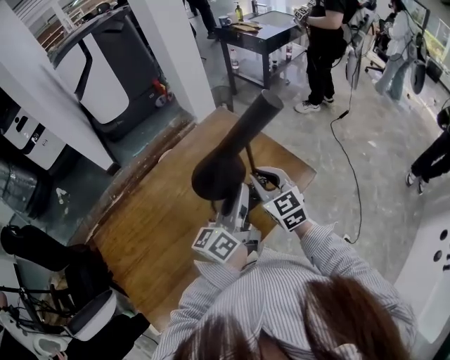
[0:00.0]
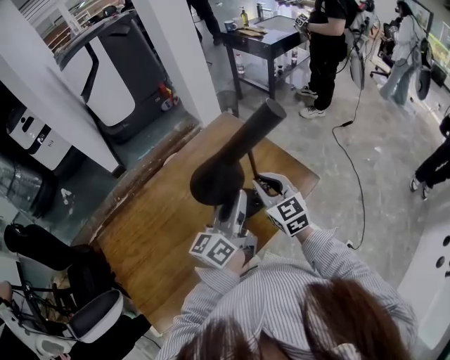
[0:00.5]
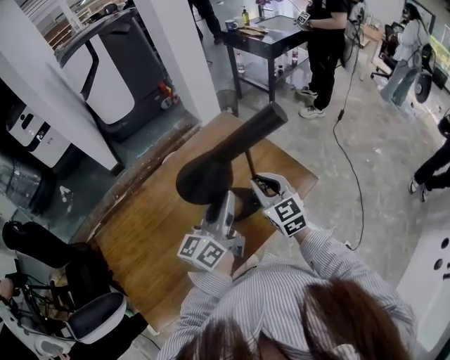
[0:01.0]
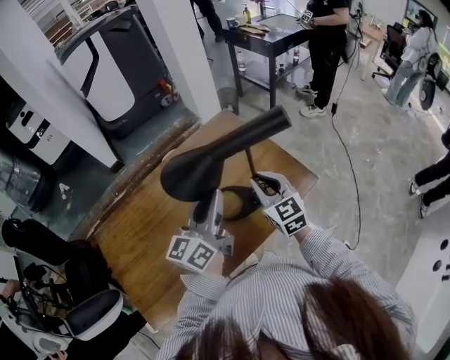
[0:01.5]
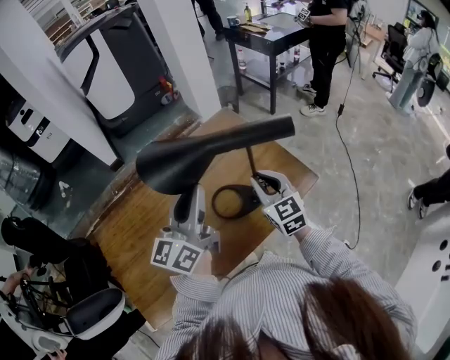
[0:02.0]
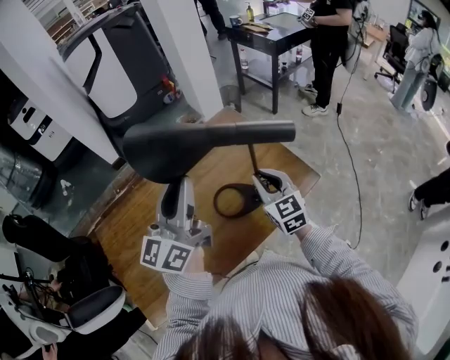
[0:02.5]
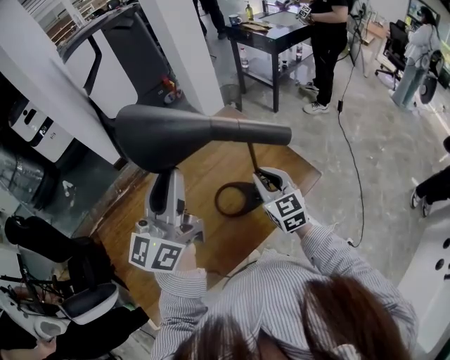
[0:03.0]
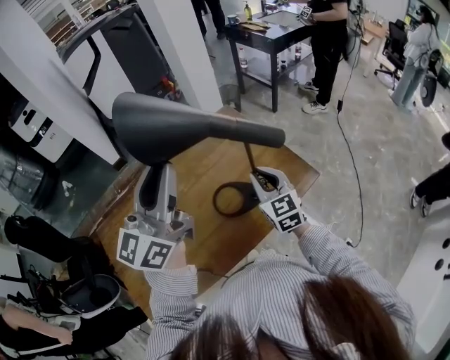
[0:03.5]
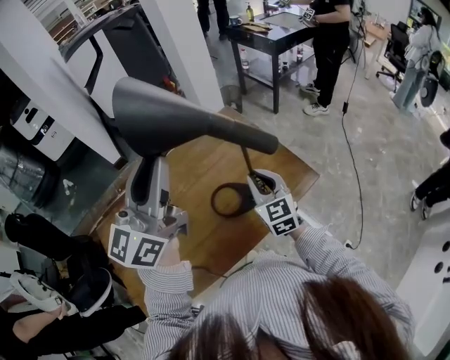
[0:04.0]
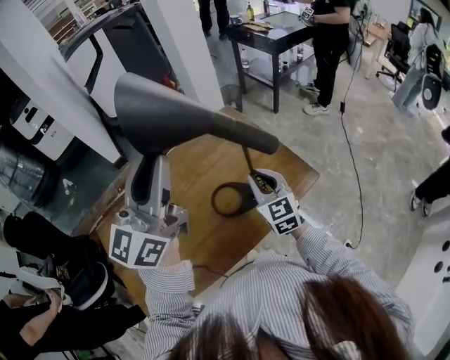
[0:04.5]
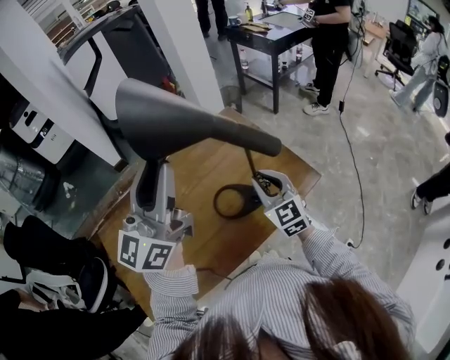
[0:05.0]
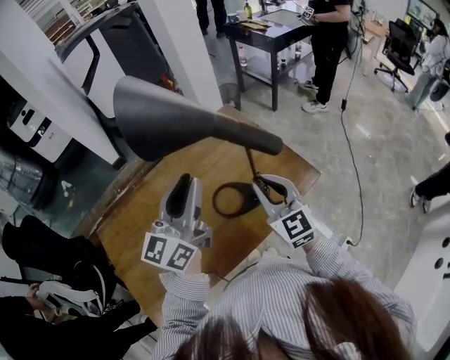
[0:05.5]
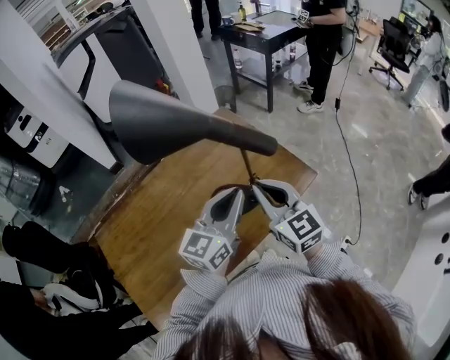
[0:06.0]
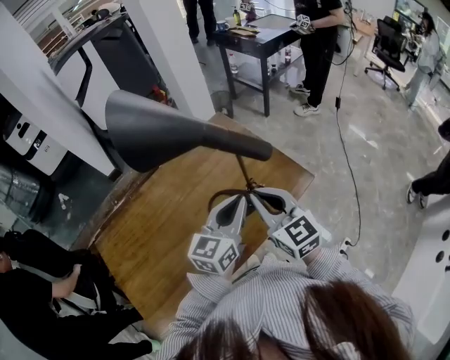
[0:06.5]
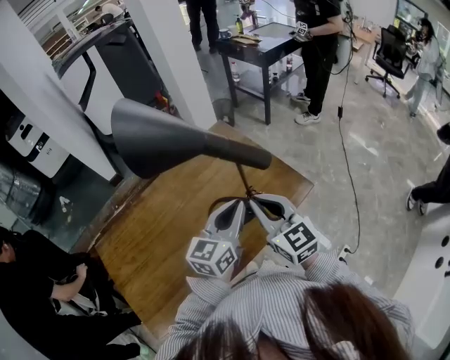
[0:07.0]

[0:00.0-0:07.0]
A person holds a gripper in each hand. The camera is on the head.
0:00.0 to 0:02.0: The left gripper travels to the left and upward by approximately 15 cm, and changes its angle by about 20 degrees.
0:02.0 to 0:03.5: The left gripper goes approximately 10 cm upward.
0:03.5 to 0:05.0: The grippers make only small movements.
0:05.0 to 0:07.0: The left gripper travels downward and to the right by roughly 25 cm, turns by some 30 degrees, and closes its fingers; the right gripper is displaced upward and backward by approximately 10 cm.

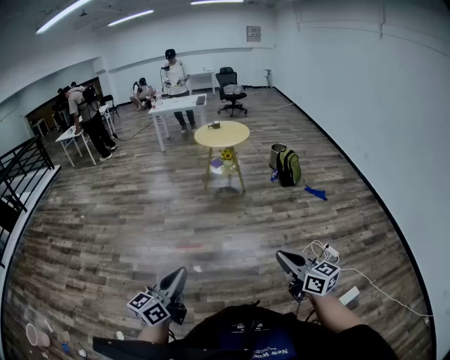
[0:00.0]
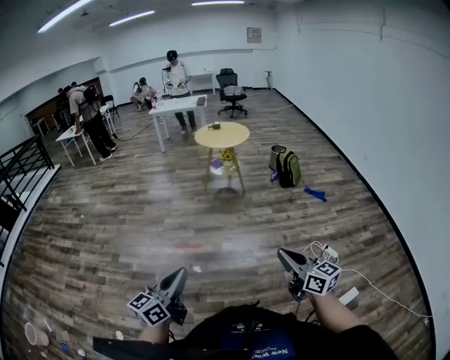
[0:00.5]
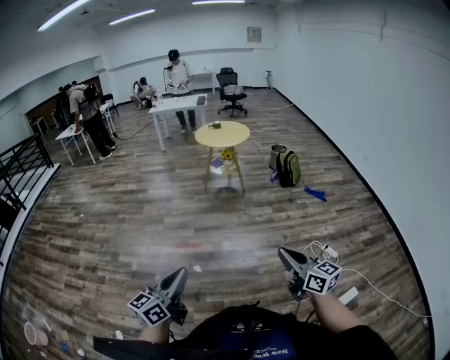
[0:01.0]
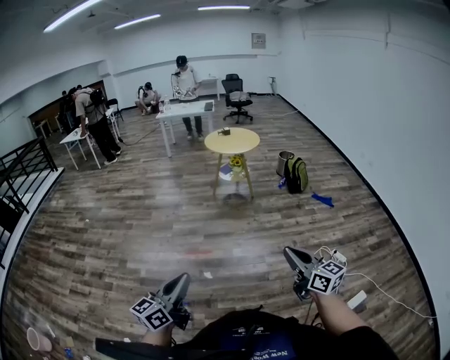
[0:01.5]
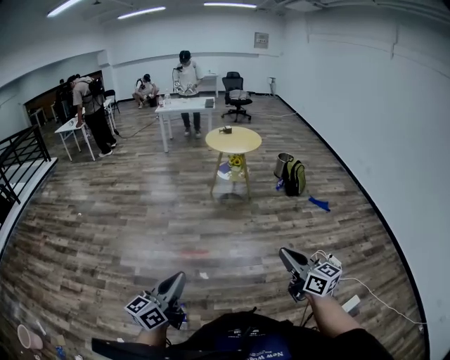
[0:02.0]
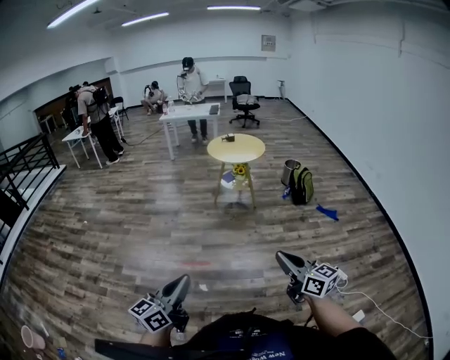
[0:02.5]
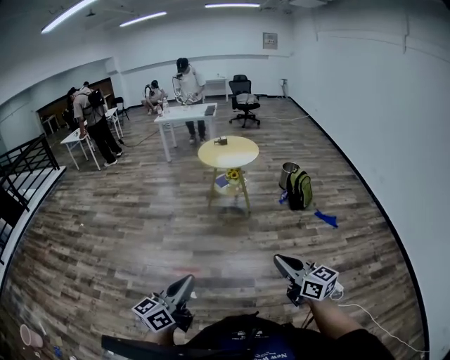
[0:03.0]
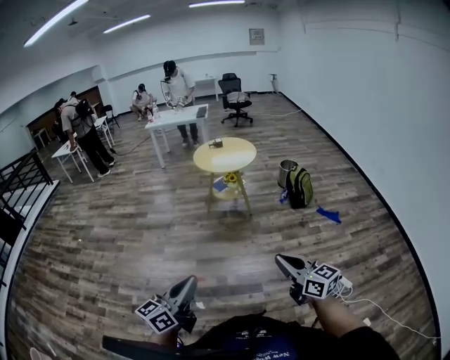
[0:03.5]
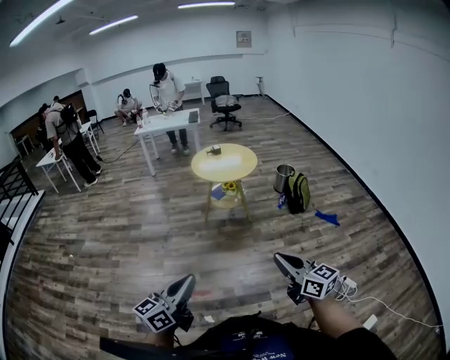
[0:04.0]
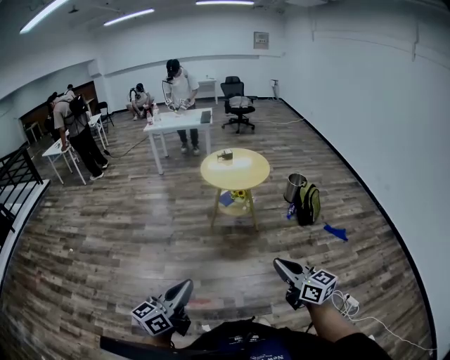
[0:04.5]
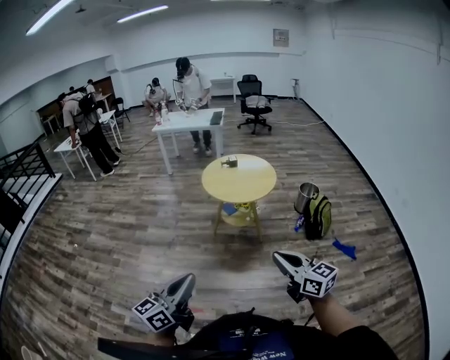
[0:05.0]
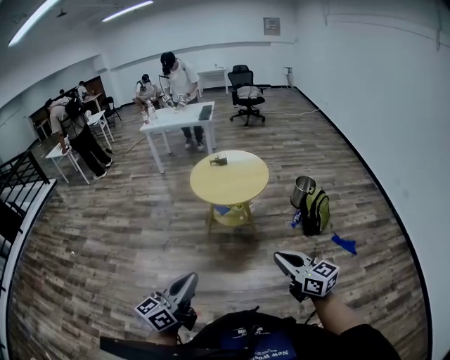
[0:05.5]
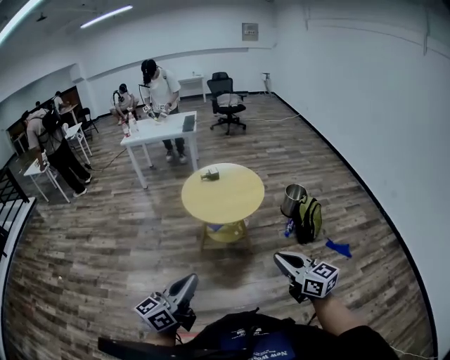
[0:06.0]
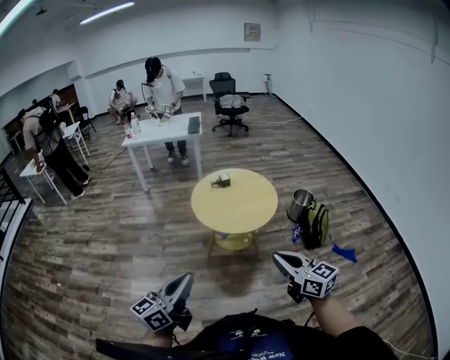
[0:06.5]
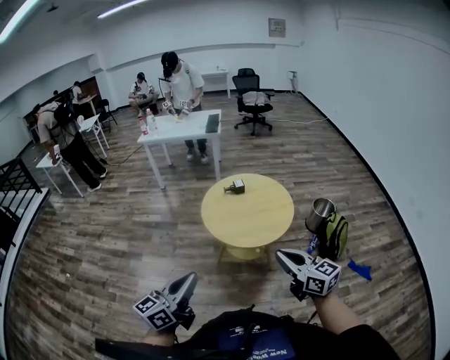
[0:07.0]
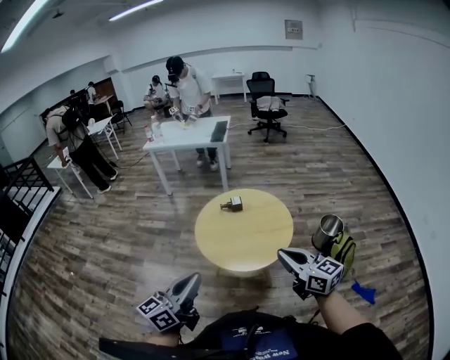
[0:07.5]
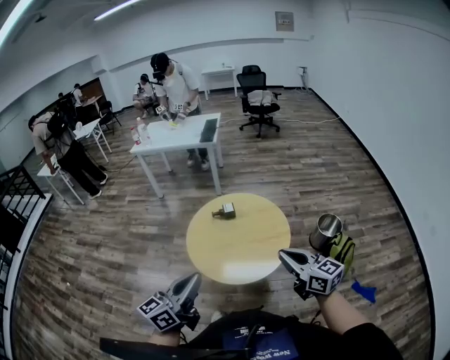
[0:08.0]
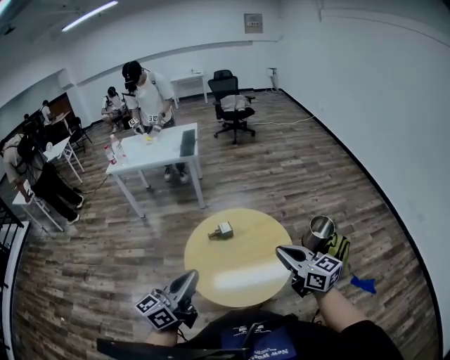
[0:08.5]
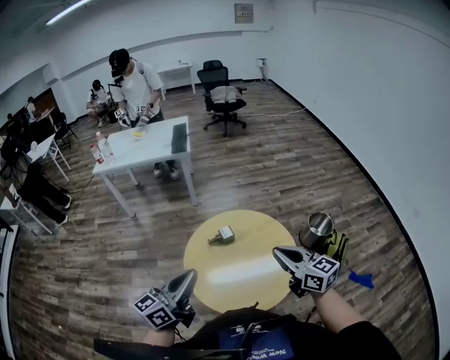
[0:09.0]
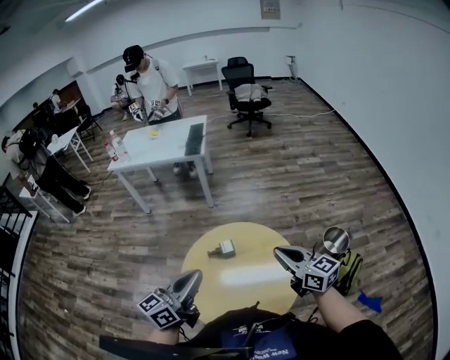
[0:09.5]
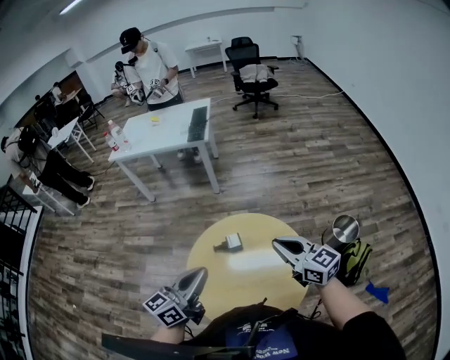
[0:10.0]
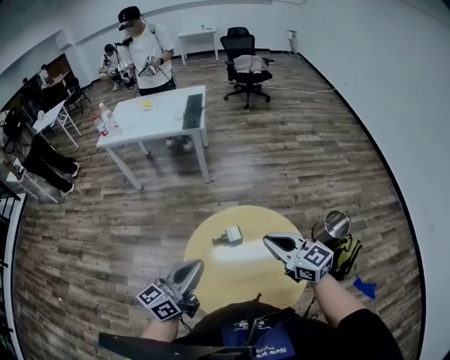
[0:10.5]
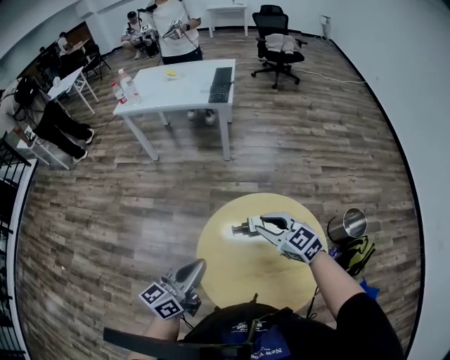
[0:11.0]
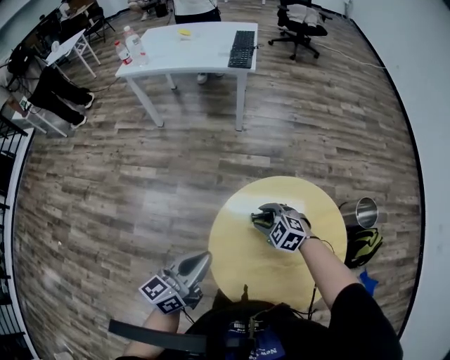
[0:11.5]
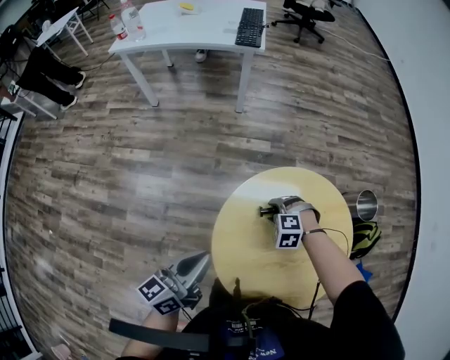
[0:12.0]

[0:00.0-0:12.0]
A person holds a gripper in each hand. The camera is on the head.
0:00.0 to 0:02.0: Both grippers move to the left, about 20 cm.
0:02.0 to 0:04.0: Both grippers are carried forward, approximately 50 cm.
0:04.0 to 0:06.0: Both grippers are carried forward, roughly 60 cm.
0:06.0 to 0:08.0: Both grippers are carried forward, some 60 cm.
0:08.0 to 0:10.0: The two grippers travel together, forward, about 40 cm.
0:10.0 to 0:12.0: The right gripper moves downward, to the left and forward, some 50 cm, tips its fingers downward by some 70 degrees, and opens up; the left gripper moves to the left, downward and forward, approximately 35 cm.

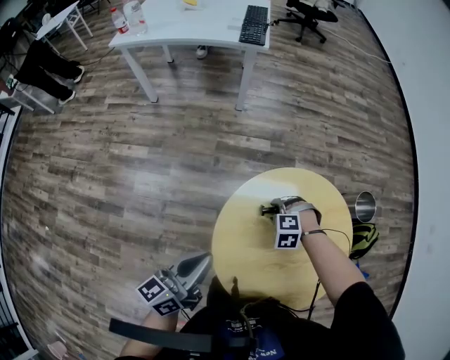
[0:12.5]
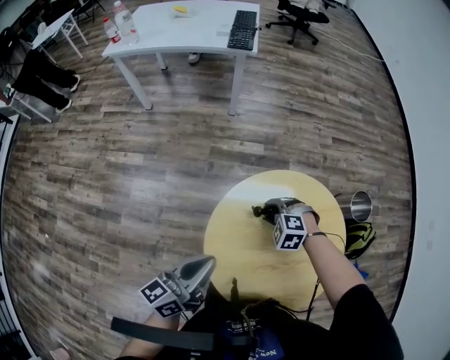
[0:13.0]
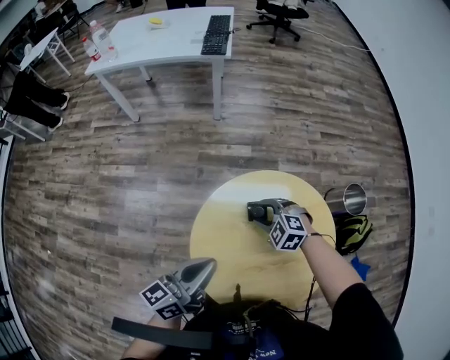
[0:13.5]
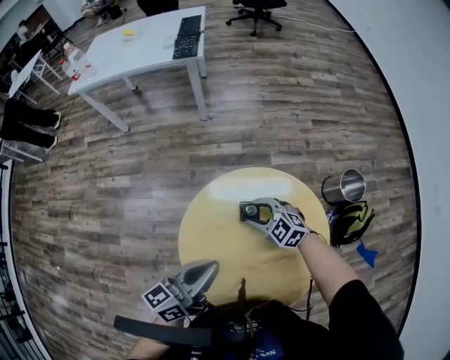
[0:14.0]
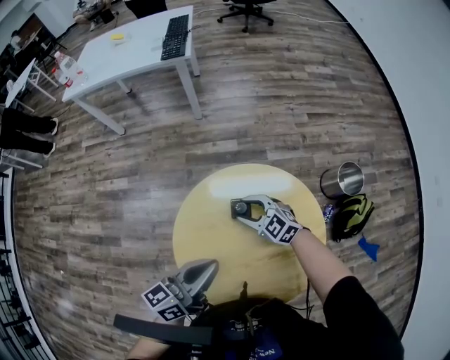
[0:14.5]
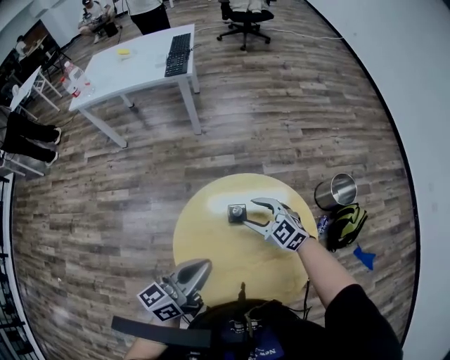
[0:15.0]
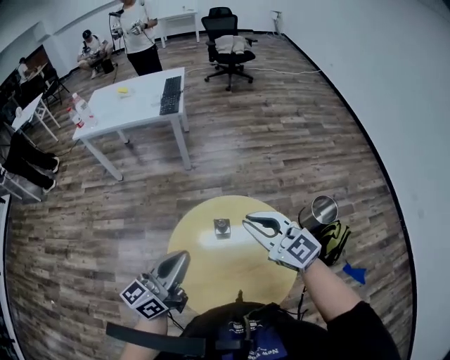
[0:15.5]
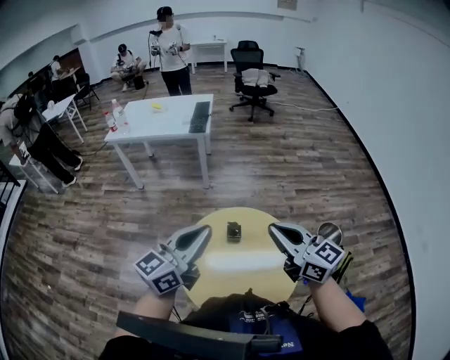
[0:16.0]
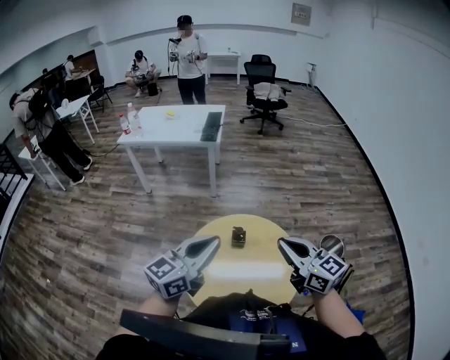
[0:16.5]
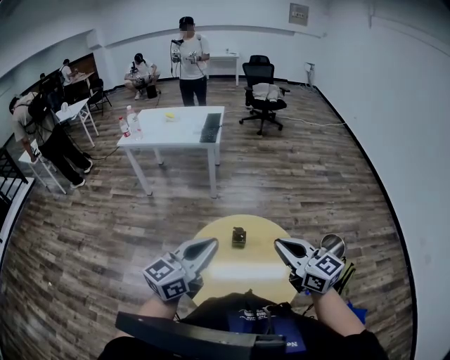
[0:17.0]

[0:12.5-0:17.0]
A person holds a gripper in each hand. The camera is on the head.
0:12.5 to 0:14.5: The left gripper moves some 25 cm. Meanwhile the right gripper moves roughly 15 cm, and angles its fingers upward, by about 50 degrees.
0:14.5 to 0:17.0: The left gripper travels upward and backward by roughly 35 cm, and turns by about 30 degrees. Meanwhile the right gripper travels upward and backward by approximately 50 cm, changes its angle by approximately 40 degrees, and closes.

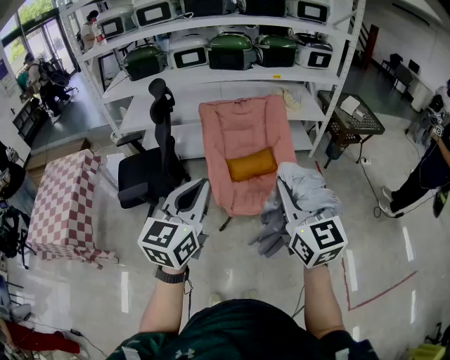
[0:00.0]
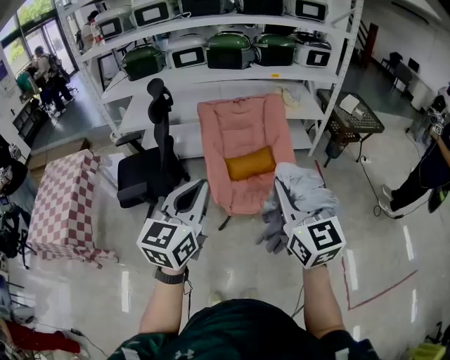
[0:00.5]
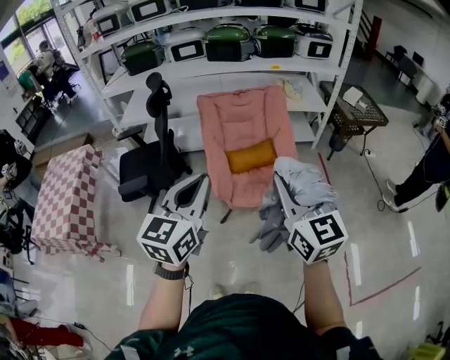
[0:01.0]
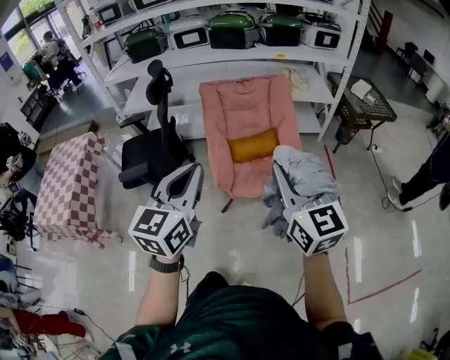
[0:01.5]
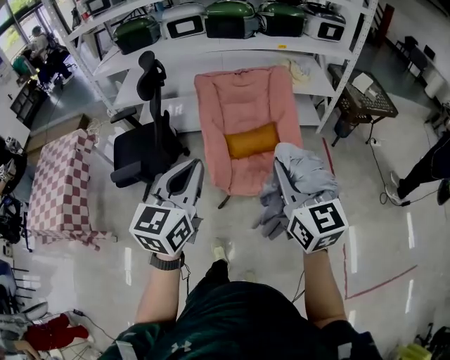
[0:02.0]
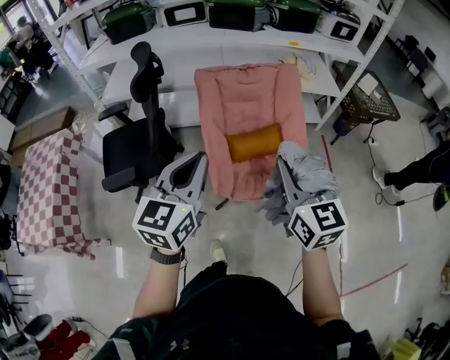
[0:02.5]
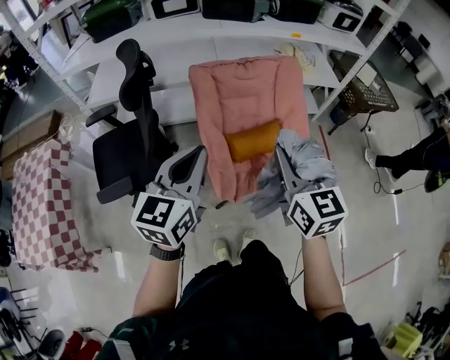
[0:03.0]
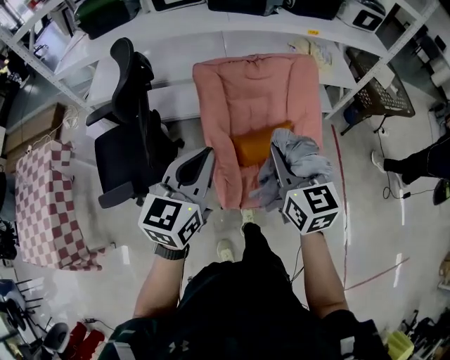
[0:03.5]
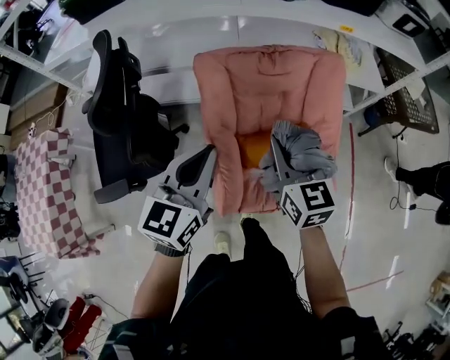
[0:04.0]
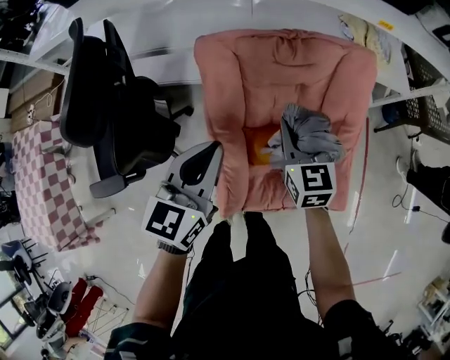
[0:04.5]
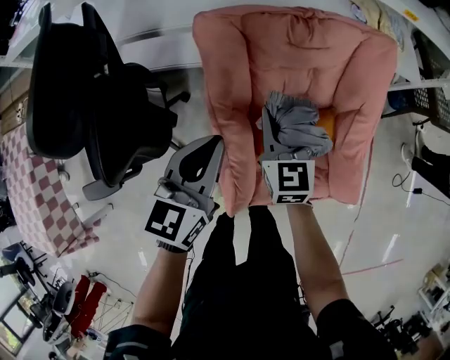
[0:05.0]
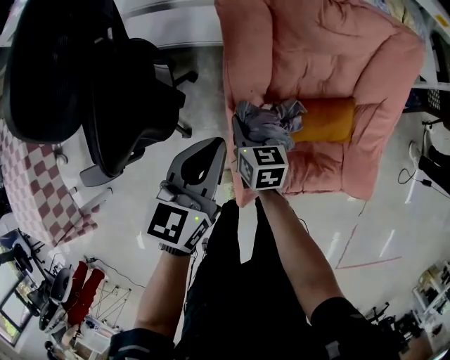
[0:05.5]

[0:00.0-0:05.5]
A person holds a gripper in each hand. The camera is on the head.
0:00.0 to 0:02.0: The right gripper goes roughly 10 cm forward and downward; the left gripper is displaced forward by approximately 5 cm.
0:02.0 to 0:03.5: Both grippers travel together forward, about 30 cm.
0:03.5 to 0:05.5: The right gripper heads downward, forward and to the left, covering some 50 cm, and rotates about 30 degrees. The left gripper is displaced downward and forward by about 30 cm.
